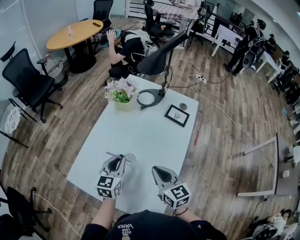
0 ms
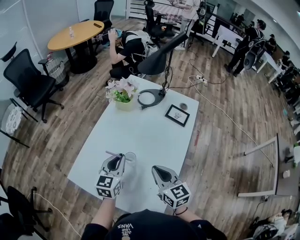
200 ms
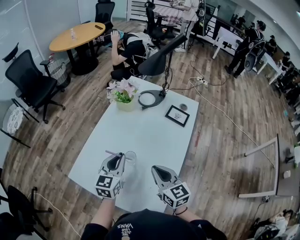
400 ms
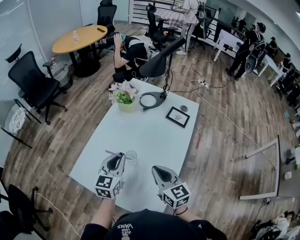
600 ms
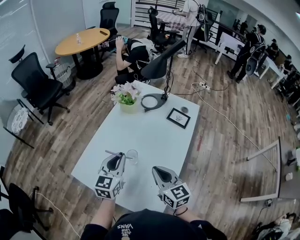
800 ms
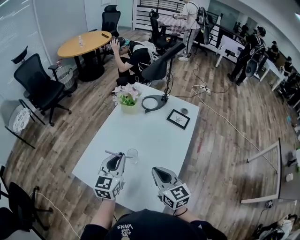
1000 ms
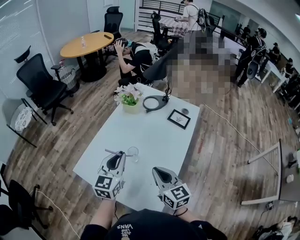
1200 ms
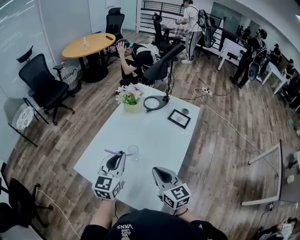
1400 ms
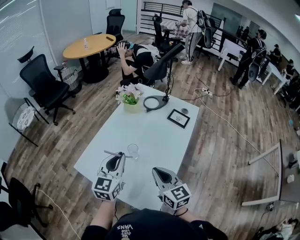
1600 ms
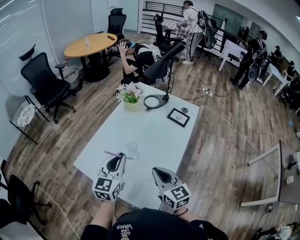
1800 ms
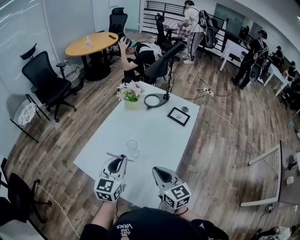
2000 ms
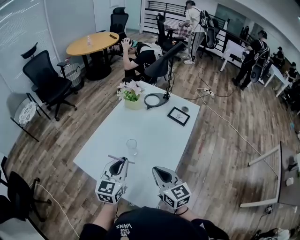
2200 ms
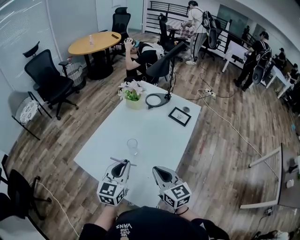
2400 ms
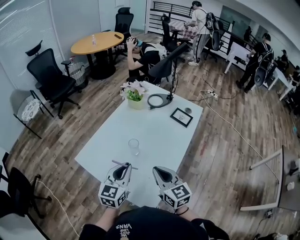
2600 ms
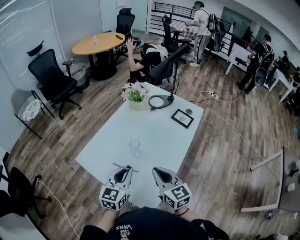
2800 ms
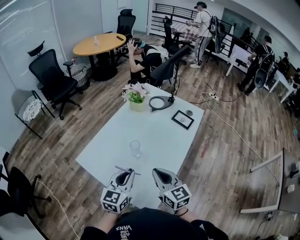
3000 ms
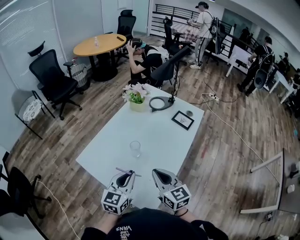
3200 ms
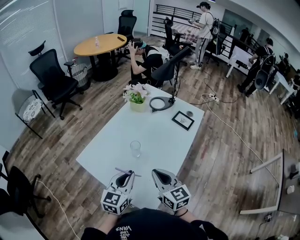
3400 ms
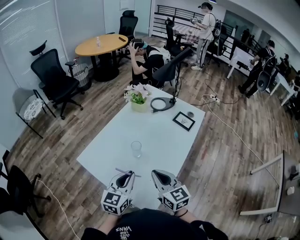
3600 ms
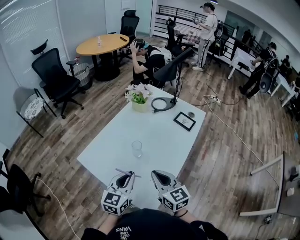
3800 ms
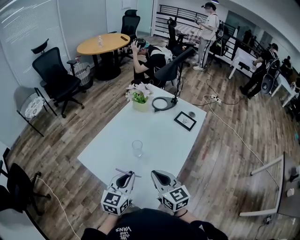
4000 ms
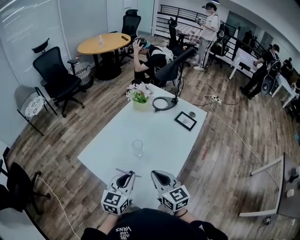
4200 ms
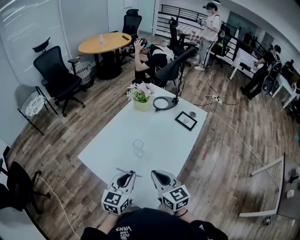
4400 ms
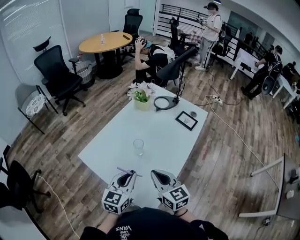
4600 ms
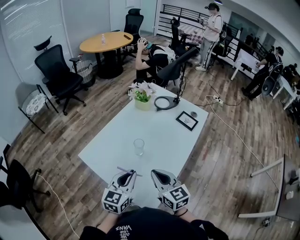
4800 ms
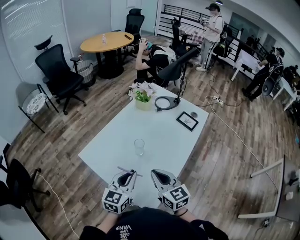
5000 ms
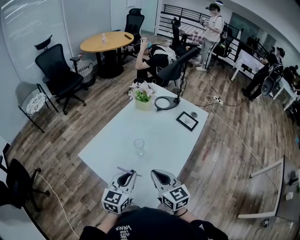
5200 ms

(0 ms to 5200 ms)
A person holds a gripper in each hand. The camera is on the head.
0 ms - 1800 ms: The right gripper goes roughly 10 cm backward; the left gripper heads backward and upward, covering roughly 15 cm.
1800 ms - 3400 ms: The left gripper shifts roughly 10 cm backward.
3400 ms - 5200 ms: There are only small adjustments of the grippers.

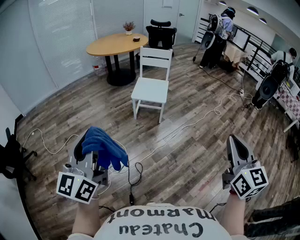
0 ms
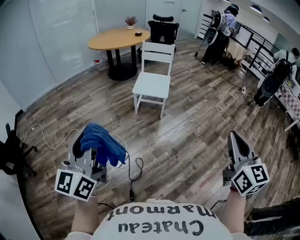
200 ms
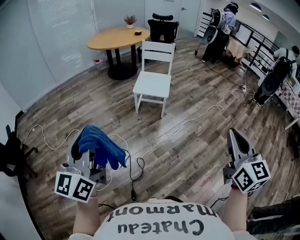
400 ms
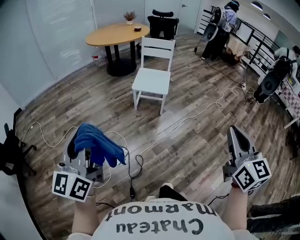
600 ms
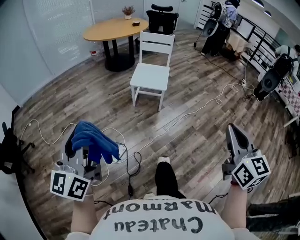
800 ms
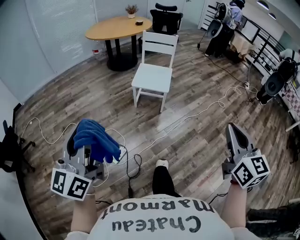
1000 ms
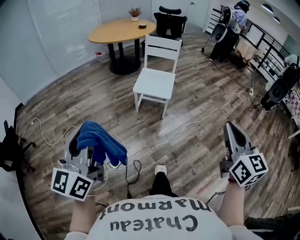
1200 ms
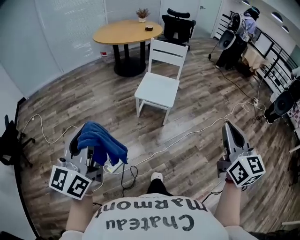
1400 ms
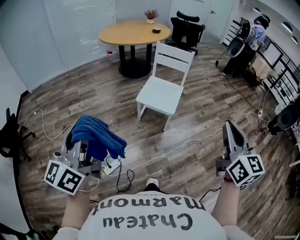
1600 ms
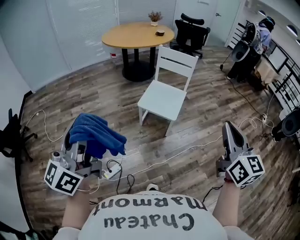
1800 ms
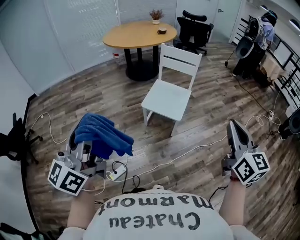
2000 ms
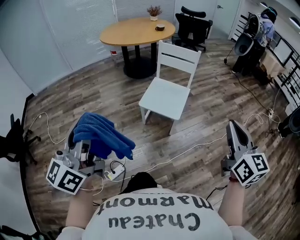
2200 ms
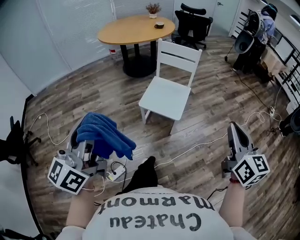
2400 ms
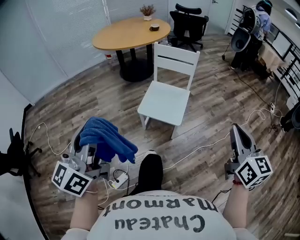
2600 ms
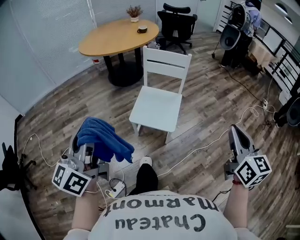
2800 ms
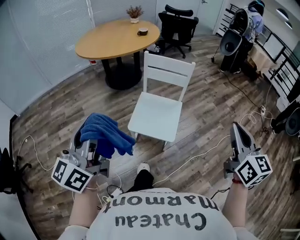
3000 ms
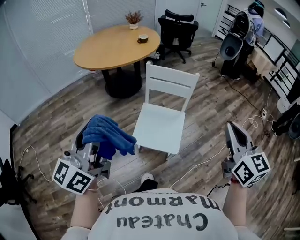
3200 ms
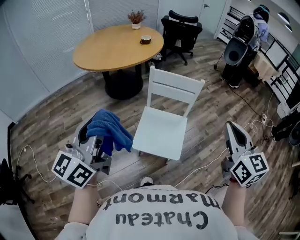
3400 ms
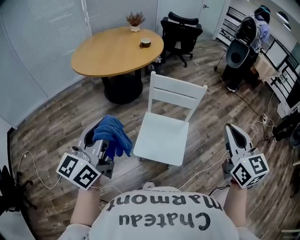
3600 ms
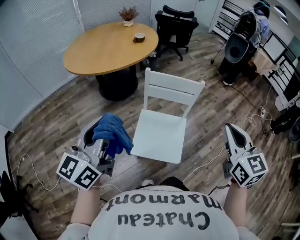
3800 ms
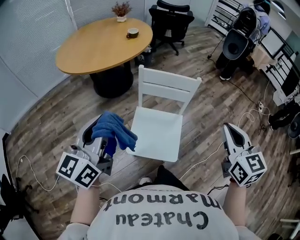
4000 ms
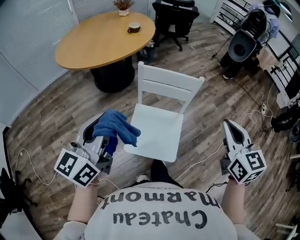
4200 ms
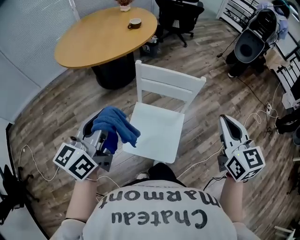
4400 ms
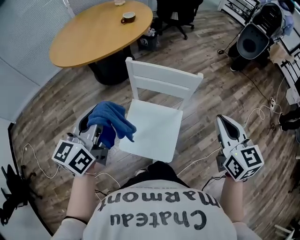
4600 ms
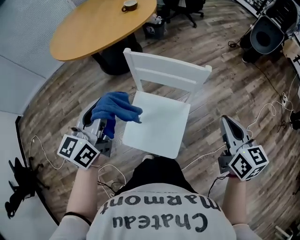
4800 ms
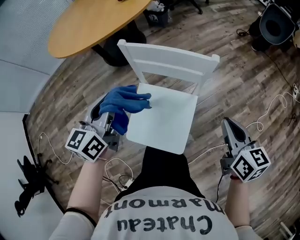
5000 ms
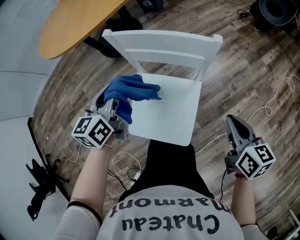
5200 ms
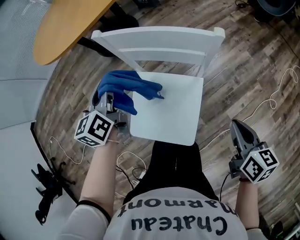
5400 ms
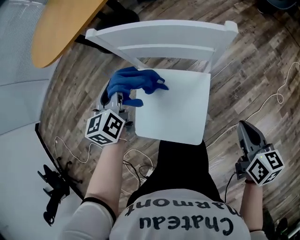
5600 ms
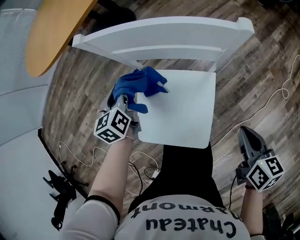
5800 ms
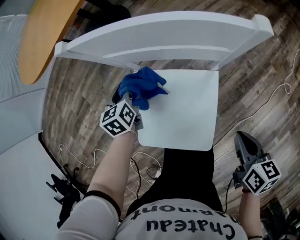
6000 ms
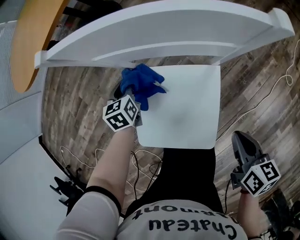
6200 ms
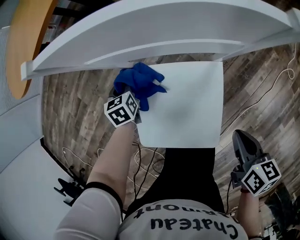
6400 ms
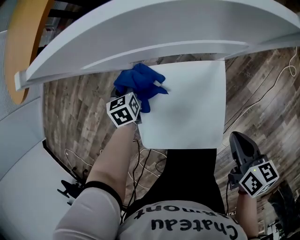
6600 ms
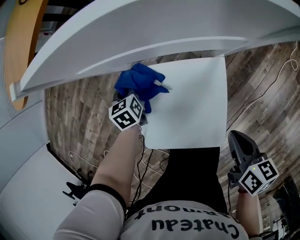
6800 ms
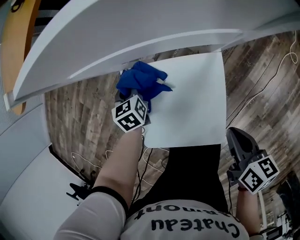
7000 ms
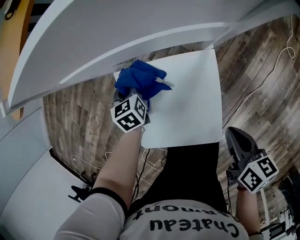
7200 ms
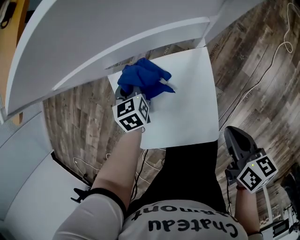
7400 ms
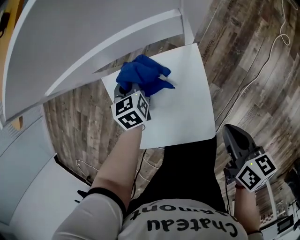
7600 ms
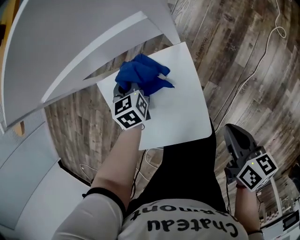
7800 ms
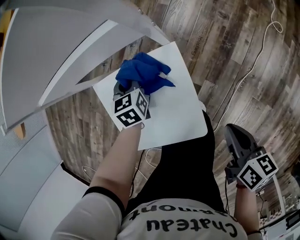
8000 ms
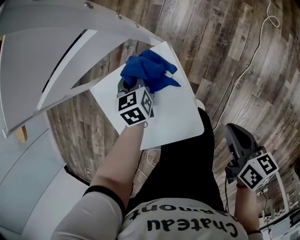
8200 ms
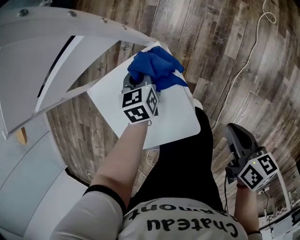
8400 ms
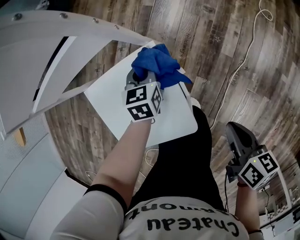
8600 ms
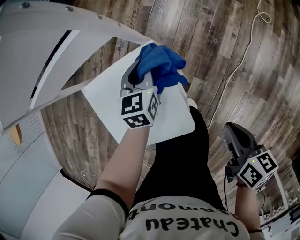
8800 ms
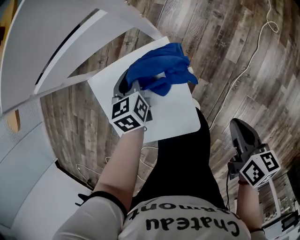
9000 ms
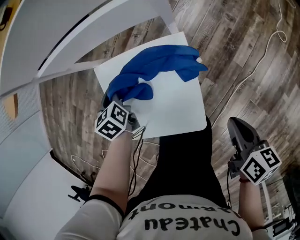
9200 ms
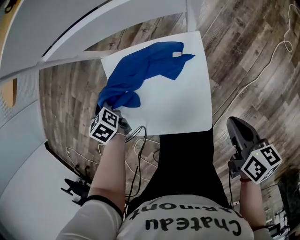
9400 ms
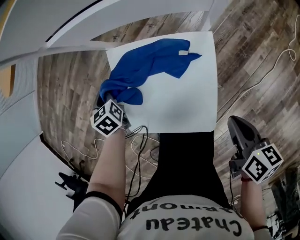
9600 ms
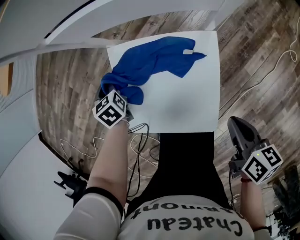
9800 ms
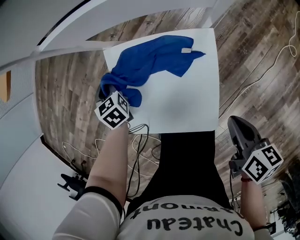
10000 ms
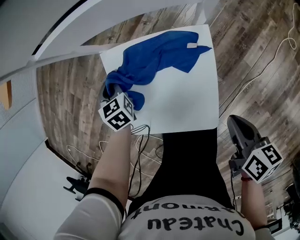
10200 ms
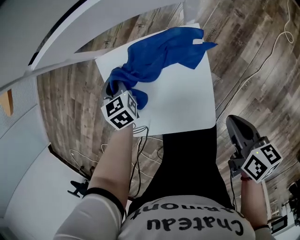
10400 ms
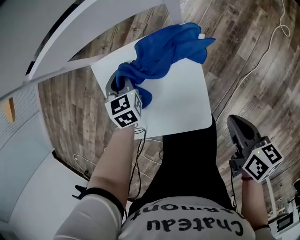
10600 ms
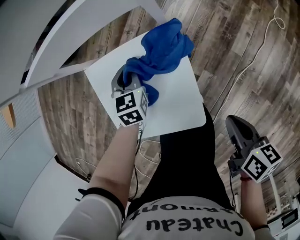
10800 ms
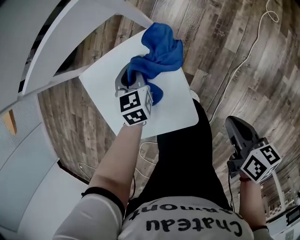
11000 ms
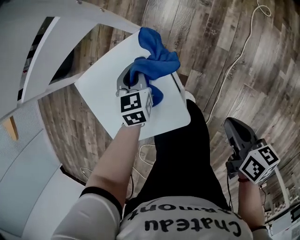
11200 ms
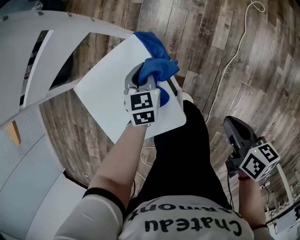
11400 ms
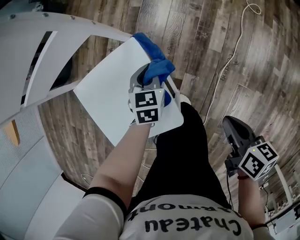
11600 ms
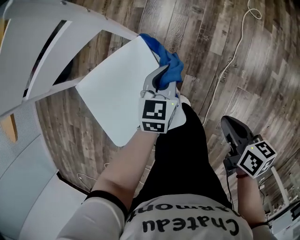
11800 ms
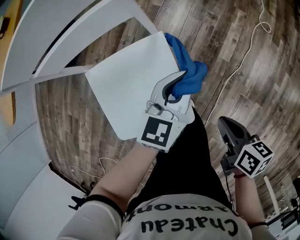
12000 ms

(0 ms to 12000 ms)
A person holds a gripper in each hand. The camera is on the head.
0 ms - 1600 ms: Both grippers move forward, roughly 30 cm.
1600 ms - 3000 ms: Both grippers travel together forward, approximately 35 cm.
3000 ms - 4400 ms: Both grippers move forward, some 30 cm.
4400 ms - 6000 ms: The left gripper moves downward and forward, roughly 50 cm, and angles its fingers downward, by approximately 40 degrees. The right gripper shifts some 40 cm downward, and rotates around the line of its fingers by roughly 40 degrees, clockwise from behind.
6000 ms - 7600 ms: The right gripper travels downward by roughly 10 cm. The left gripper heads to the right and downward, covering approximately 20 cm, and swivels approximately 20 degrees.
7600 ms - 9000 ms: The right gripper goes roughly 10 cm to the right and backward. Meanwhile the left gripper is displaced to the right by roughly 10 cm.
9000 ms - 10400 ms: The right gripper ends up about 10 cm from where it was.
10400 ms - 12000 ms: The left gripper changes place by roughly 40 cm, and swivels some 60 degrees.

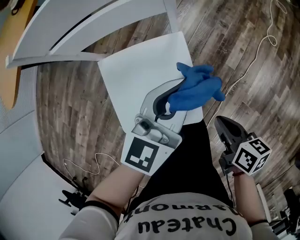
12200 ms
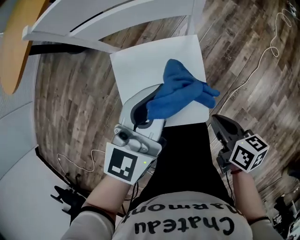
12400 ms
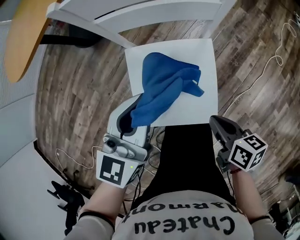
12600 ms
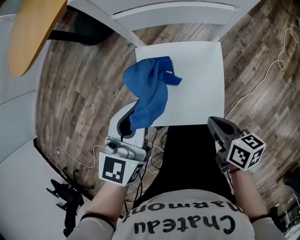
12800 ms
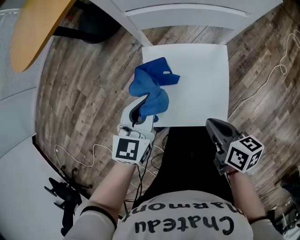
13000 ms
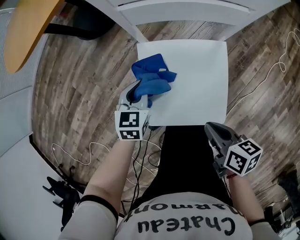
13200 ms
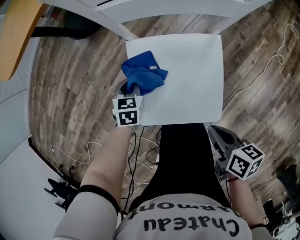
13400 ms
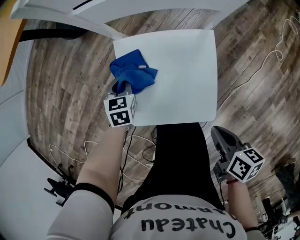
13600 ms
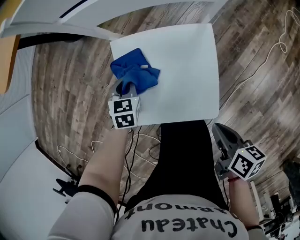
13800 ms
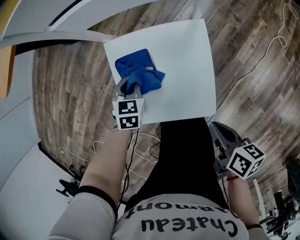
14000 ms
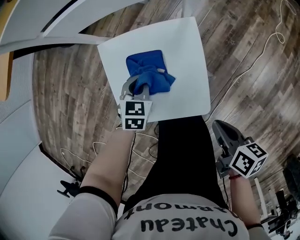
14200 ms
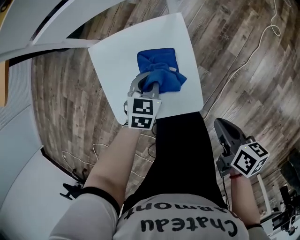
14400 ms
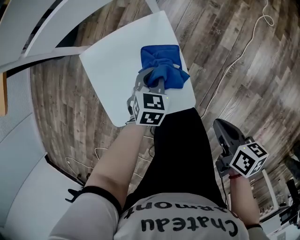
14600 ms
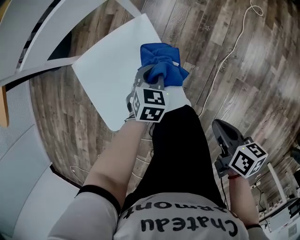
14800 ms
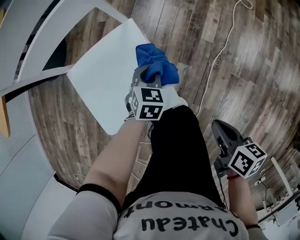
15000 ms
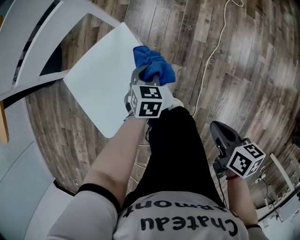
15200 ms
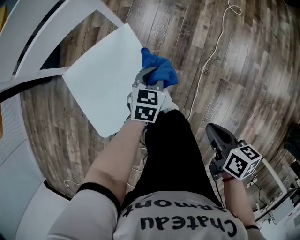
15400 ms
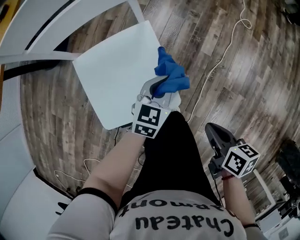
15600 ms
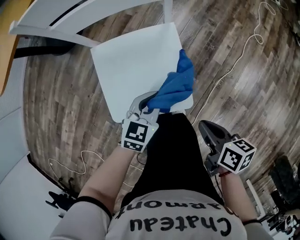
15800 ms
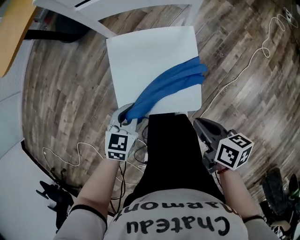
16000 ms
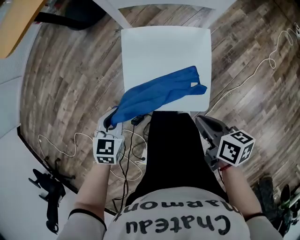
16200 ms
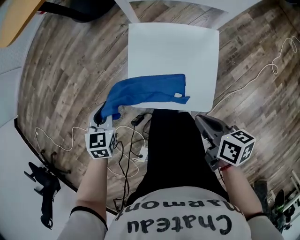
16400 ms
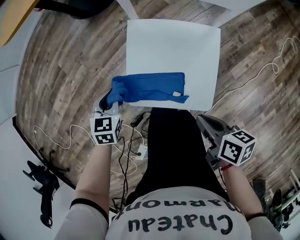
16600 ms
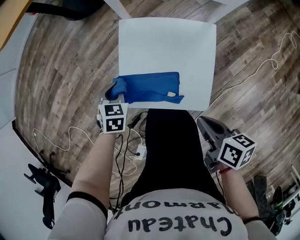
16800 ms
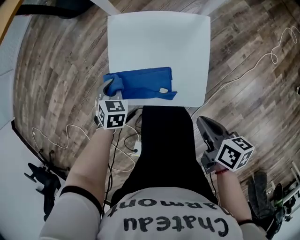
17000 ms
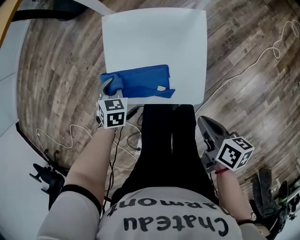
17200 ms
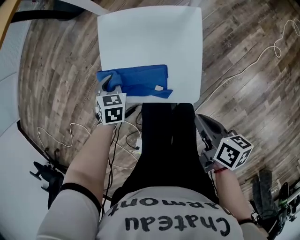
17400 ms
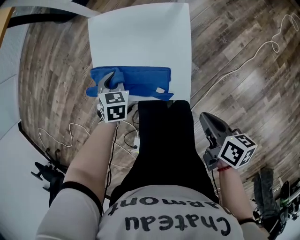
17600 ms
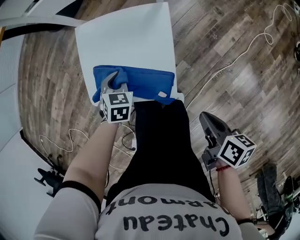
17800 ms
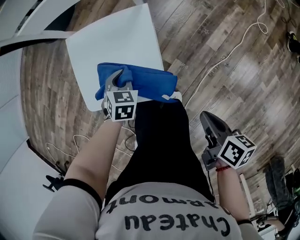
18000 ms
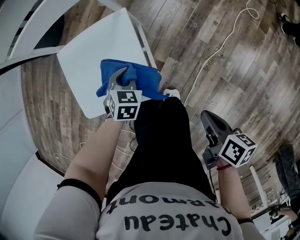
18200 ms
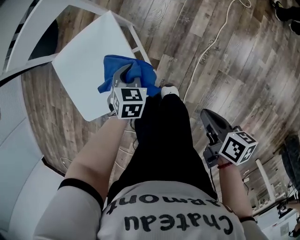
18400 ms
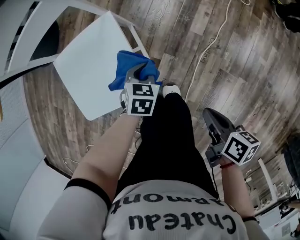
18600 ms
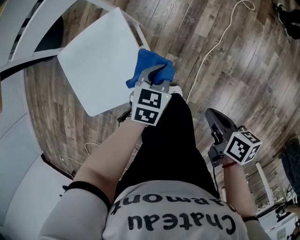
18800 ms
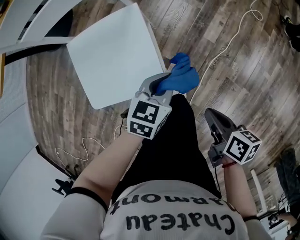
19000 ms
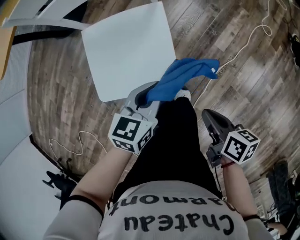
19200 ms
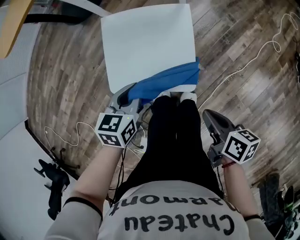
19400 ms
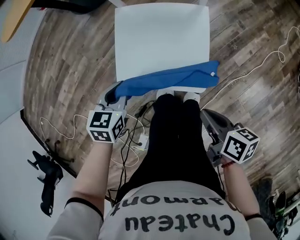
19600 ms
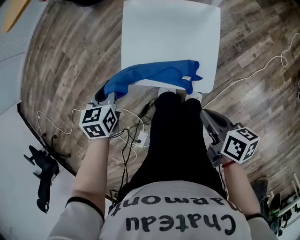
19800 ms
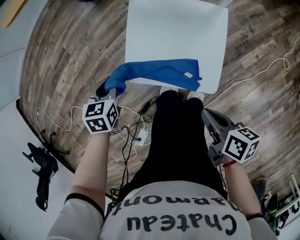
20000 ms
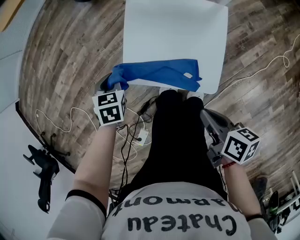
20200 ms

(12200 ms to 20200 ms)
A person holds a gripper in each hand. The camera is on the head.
12200 ms - 13800 ms: The right gripper goes about 10 cm to the left, while the left gripper travels to the left and downward by about 35 cm, and tips its fingers downward by some 40 degrees.
13800 ms - 15400 ms: The left gripper ends up approximately 35 cm from where it was, and swivels about 40 degrees. The right gripper changes place by about 20 cm.
15400 ms - 17000 ms: The left gripper reaches some 10 cm upward, then returns, and turns by roughly 40 degrees. The right gripper ends up roughly 15 cm from where it was, and turns by approximately 30 degrees.
17000 ms - 18600 ms: The right gripper shifts by some 25 cm, and rotates some 30 degrees; the left gripper shifts by some 40 cm, and turns by about 30 degrees.
18600 ms - 20200 ms: The right gripper moves approximately 25 cm, and turns by roughly 30 degrees; the left gripper goes upward and returns, some 15 cm each way, and swivels some 40 degrees.
